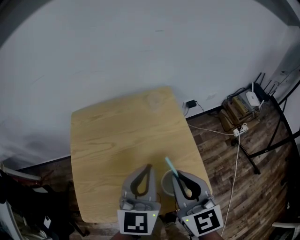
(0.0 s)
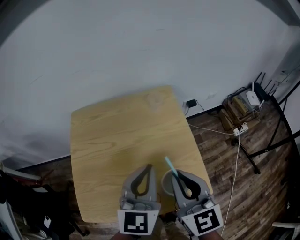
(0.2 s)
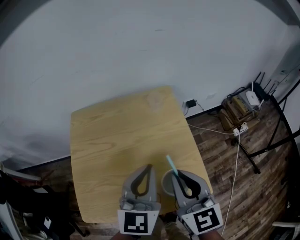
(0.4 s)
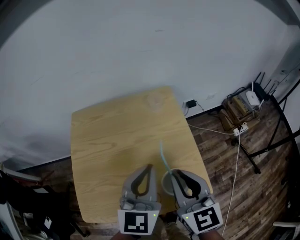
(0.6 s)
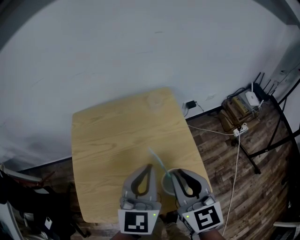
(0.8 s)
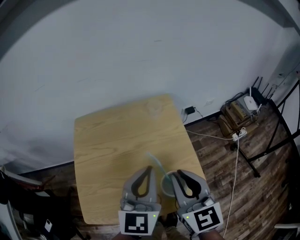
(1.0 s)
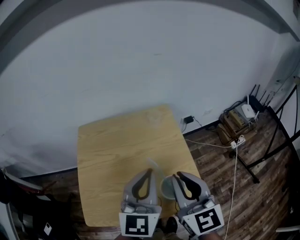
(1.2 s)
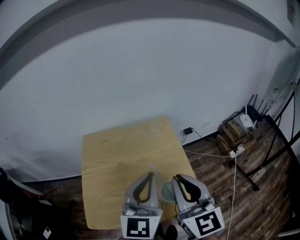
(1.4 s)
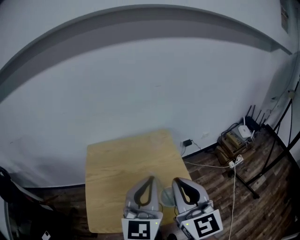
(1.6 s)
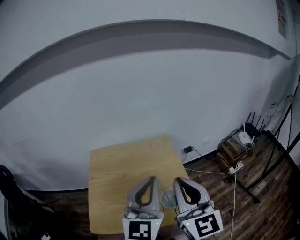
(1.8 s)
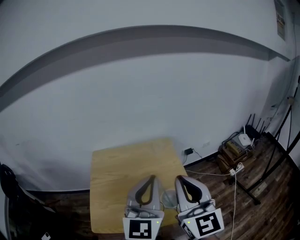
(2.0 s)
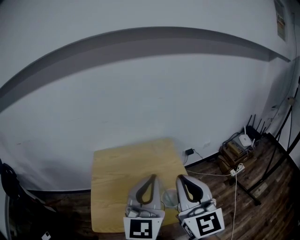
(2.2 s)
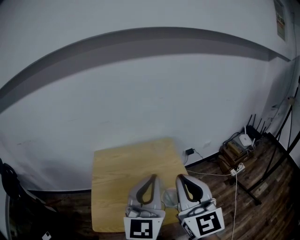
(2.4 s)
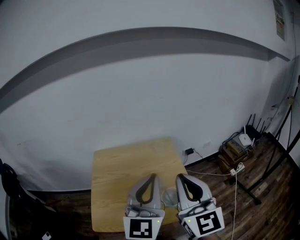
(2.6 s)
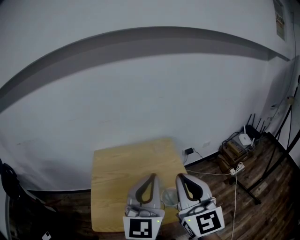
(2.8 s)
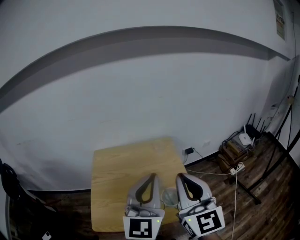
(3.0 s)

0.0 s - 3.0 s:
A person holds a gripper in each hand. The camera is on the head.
0.0 s - 1.6 s: The two grippers go some 15 cm upward.
1.6 s - 3.0 s: The right gripper changes place by some 5 cm. The left gripper moves upward, roughly 5 cm.

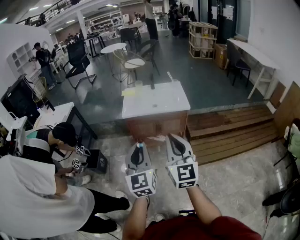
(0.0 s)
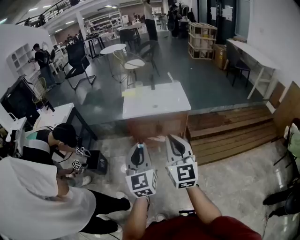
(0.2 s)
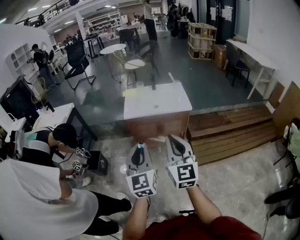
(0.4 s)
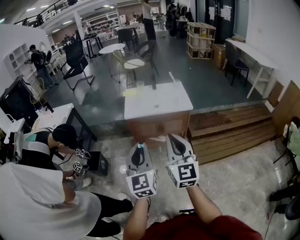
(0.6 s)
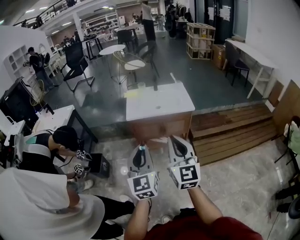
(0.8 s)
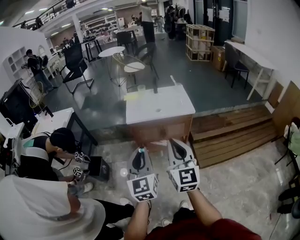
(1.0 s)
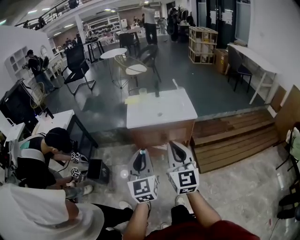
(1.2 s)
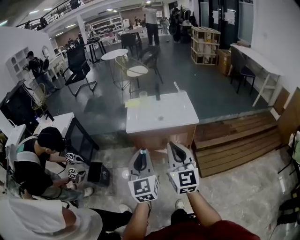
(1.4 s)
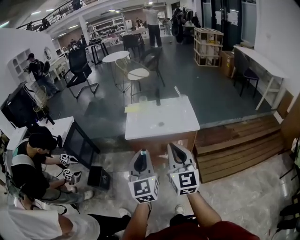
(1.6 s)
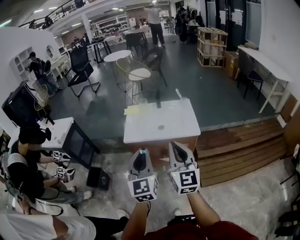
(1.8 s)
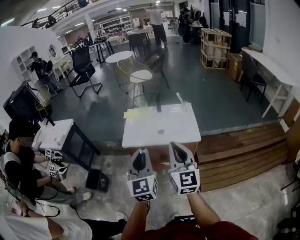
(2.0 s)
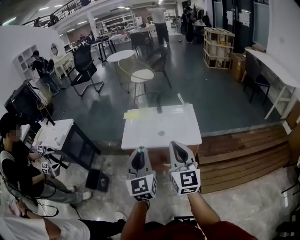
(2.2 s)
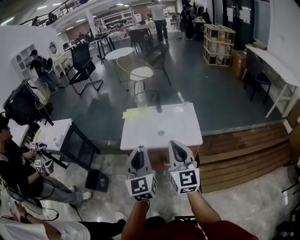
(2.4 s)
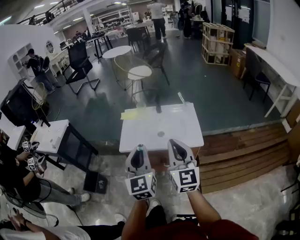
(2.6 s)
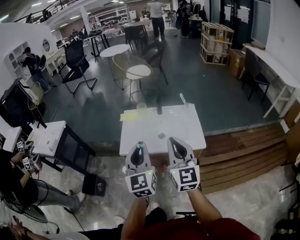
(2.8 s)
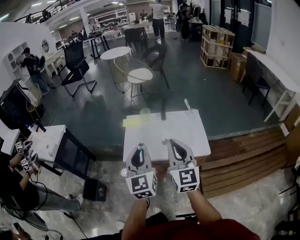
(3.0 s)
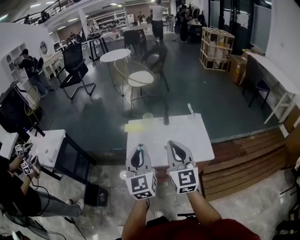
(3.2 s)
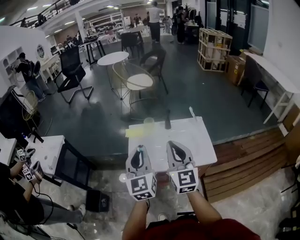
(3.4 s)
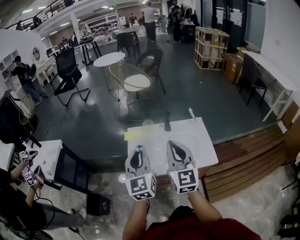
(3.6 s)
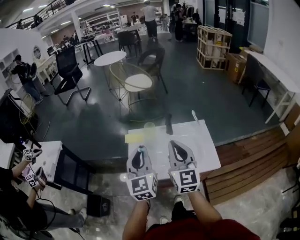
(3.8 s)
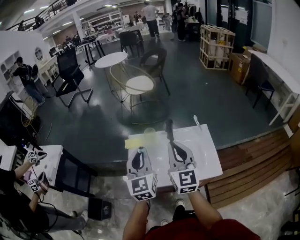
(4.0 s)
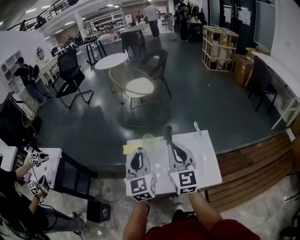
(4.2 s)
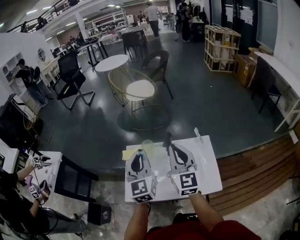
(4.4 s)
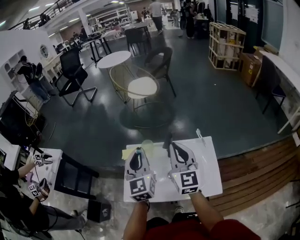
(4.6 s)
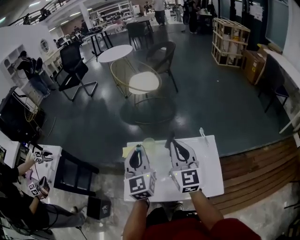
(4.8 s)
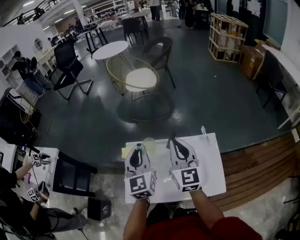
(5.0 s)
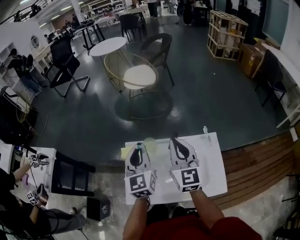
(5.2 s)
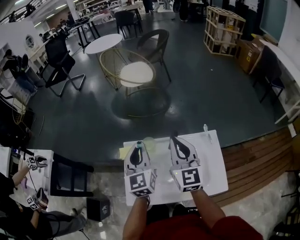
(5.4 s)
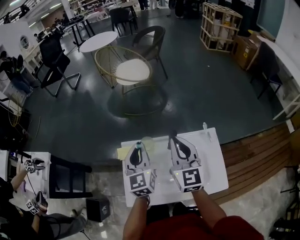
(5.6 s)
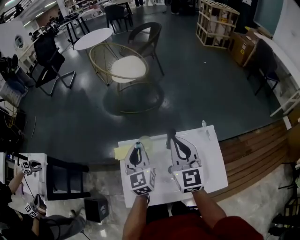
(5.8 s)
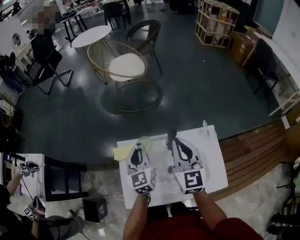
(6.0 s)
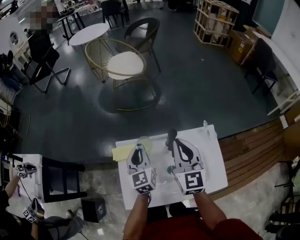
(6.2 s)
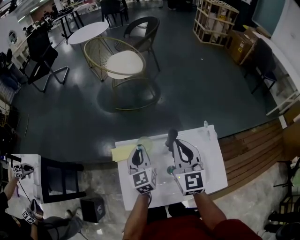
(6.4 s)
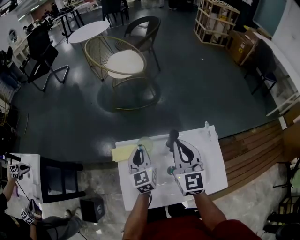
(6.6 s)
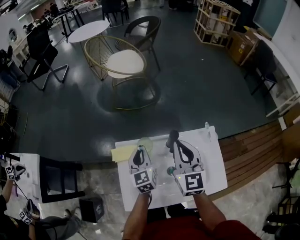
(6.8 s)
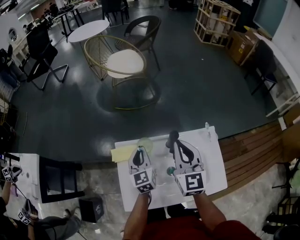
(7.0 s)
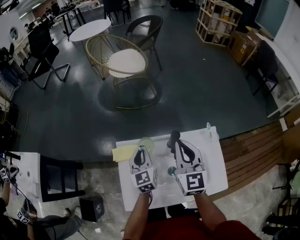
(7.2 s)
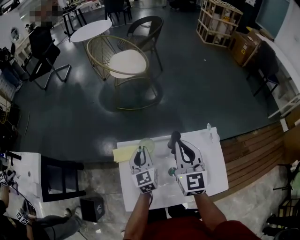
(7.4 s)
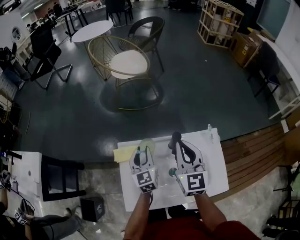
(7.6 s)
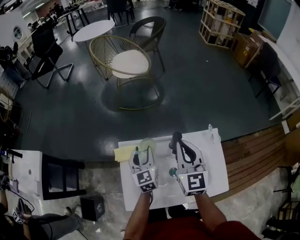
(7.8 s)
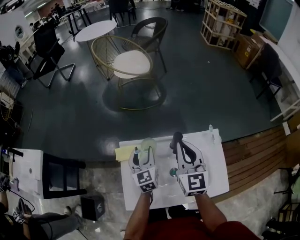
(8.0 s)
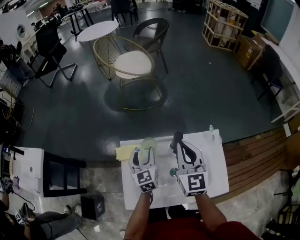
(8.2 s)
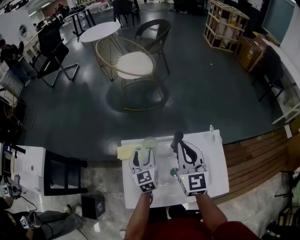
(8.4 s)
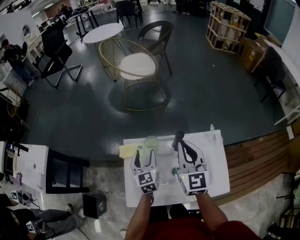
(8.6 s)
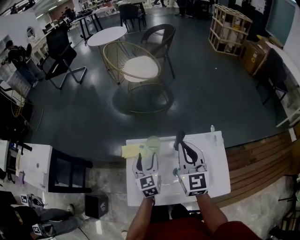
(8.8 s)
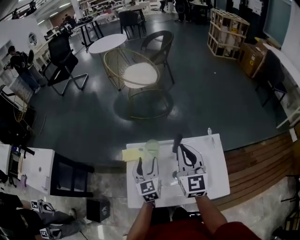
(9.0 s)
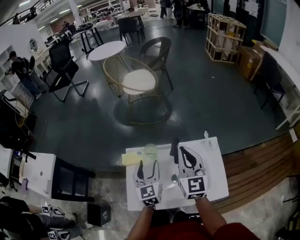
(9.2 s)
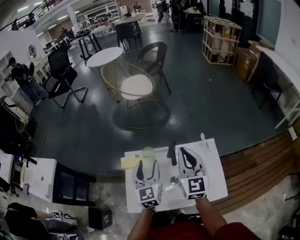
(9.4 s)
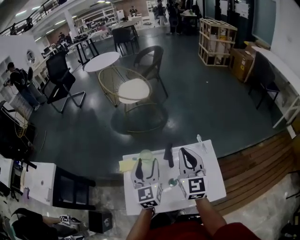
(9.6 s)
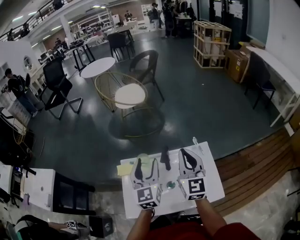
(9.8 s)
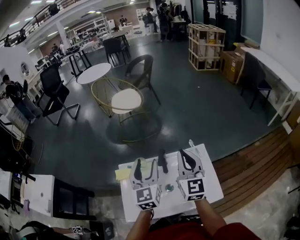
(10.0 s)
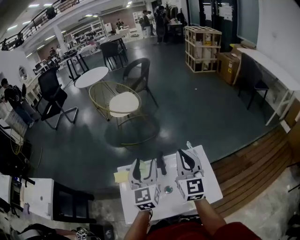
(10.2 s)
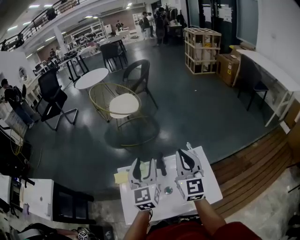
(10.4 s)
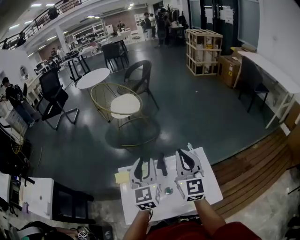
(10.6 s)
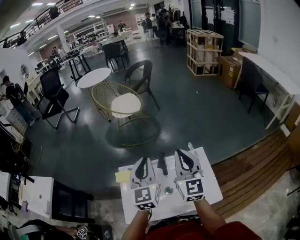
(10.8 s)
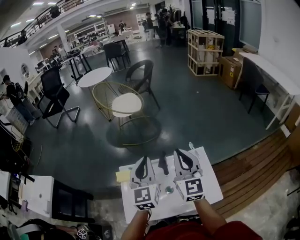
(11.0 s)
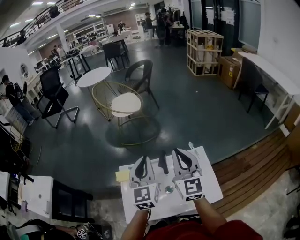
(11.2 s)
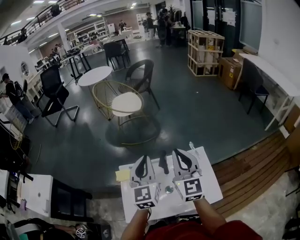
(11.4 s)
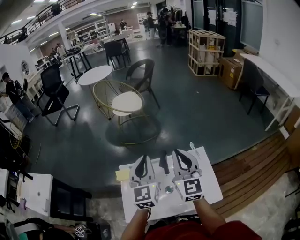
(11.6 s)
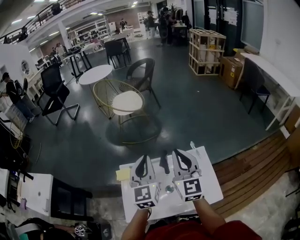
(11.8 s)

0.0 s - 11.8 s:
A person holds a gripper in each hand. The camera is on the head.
0.0 s - 1.4 s: Both grippers travel together forward, approximately 10 cm.
1.4 s - 3.0 s: Both grippers travel together forward, about 30 cm.
3.0 s - 4.4 s: The two grippers go approximately 25 cm forward.
4.4 s - 6.0 s: The right gripper travels forward and downward by some 15 cm. The left gripper shifts about 20 cm forward and downward.
6.0 s - 7.4 s: The left gripper heads downward, covering some 5 cm.
7.4 s - 8.8 s: The left gripper shifts by about 5 cm, and opens its fingers.
8.8 s - 10.4 s: The right gripper travels to the right and upward by about 10 cm. Meanwhile the left gripper shifts about 20 cm upward and to the right, and changes its angle by some 20 degrees.
10.4 s - 11.8 s: The left gripper closes up.

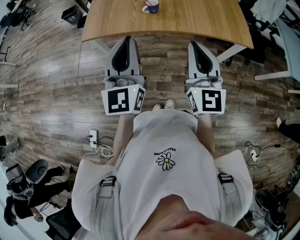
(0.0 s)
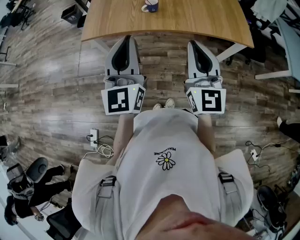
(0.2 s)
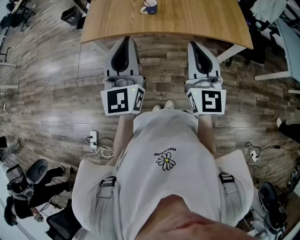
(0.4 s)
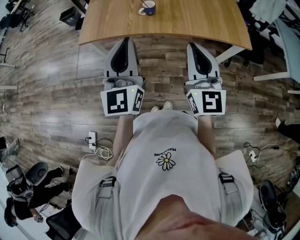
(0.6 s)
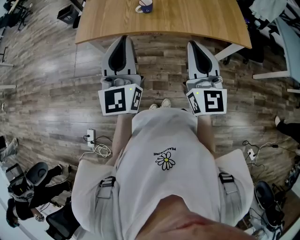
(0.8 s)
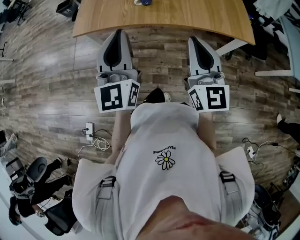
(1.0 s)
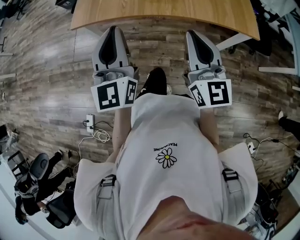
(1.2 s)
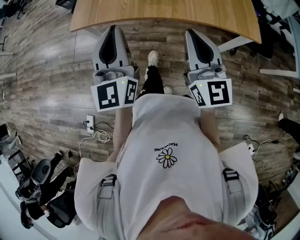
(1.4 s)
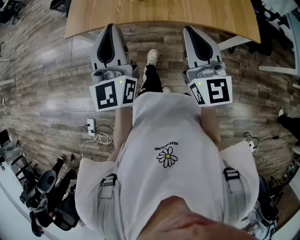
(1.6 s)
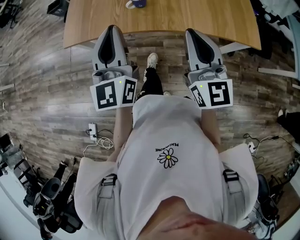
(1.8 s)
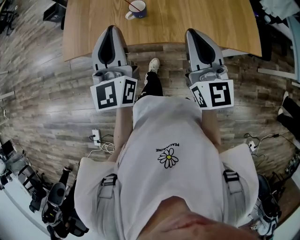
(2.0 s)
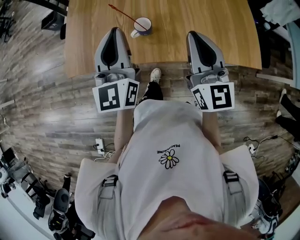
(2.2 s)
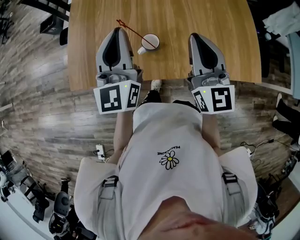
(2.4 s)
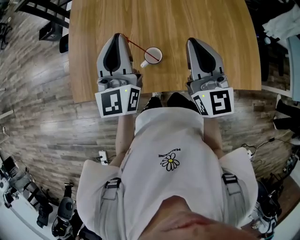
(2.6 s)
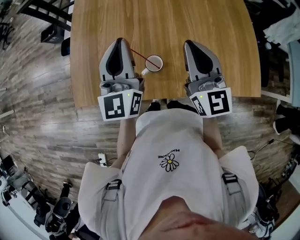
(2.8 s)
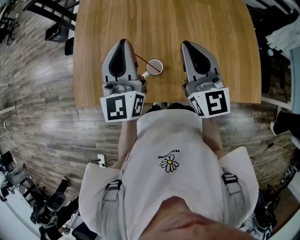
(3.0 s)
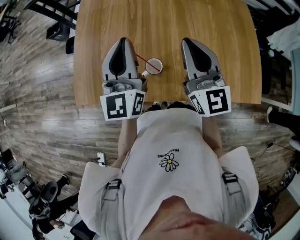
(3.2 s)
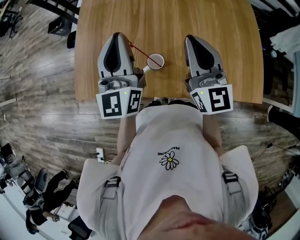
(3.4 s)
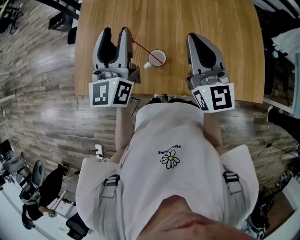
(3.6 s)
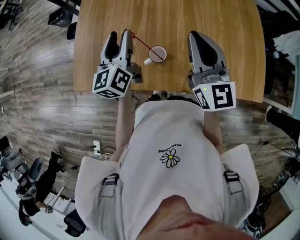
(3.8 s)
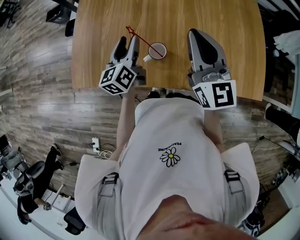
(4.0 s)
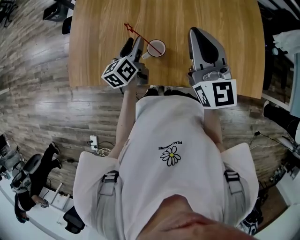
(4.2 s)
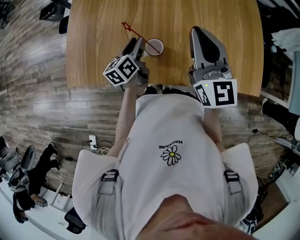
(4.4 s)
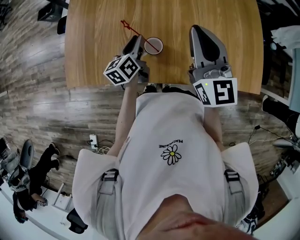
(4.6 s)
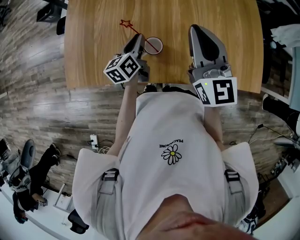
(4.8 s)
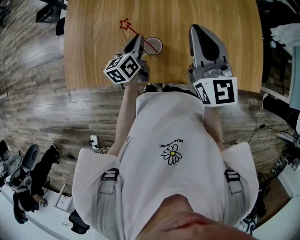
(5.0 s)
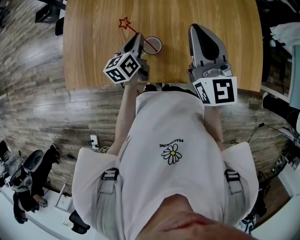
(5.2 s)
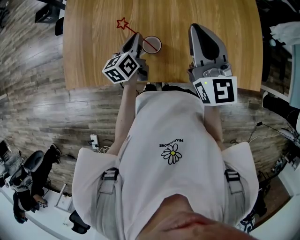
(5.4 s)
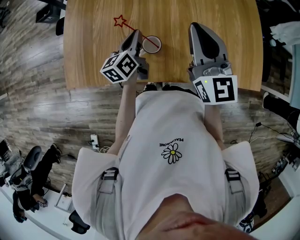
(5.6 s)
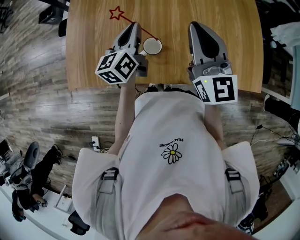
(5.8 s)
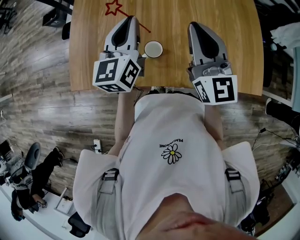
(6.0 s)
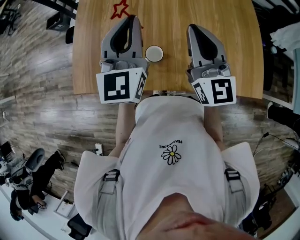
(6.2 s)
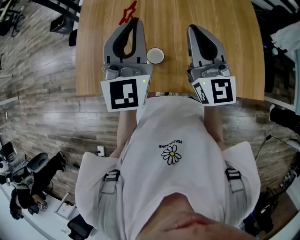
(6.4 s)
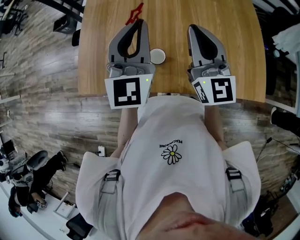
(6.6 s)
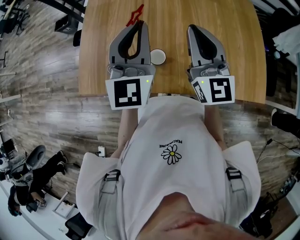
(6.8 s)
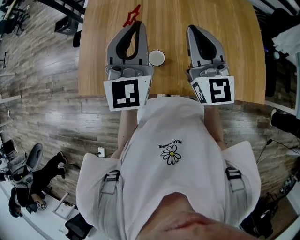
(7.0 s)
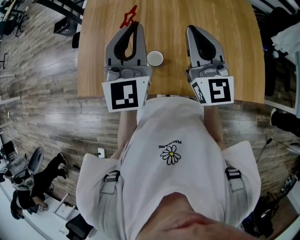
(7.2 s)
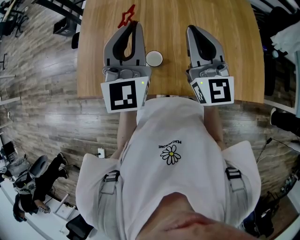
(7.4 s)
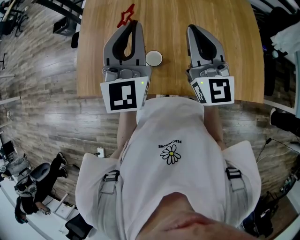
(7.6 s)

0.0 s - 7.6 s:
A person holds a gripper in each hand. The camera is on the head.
0.0 s - 1.6 s: Both grippers travel together forward, some 10 cm.
1.6 s - 3.0 s: Both grippers move forward, roughly 35 cm.
3.0 s - 4.6 s: The left gripper moves downward, some 25 cm, changes its angle by some 50 degrees, and opens up.
4.6 s - 6.0 s: The left gripper moves upward, roughly 20 cm, and rotates about 30 degrees.
6.0 s - 7.6 s: The left gripper travels upward by roughly 10 cm, and rotates approximately 30 degrees.

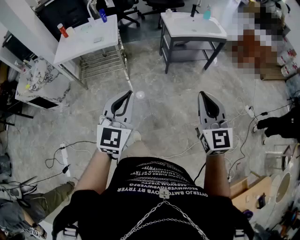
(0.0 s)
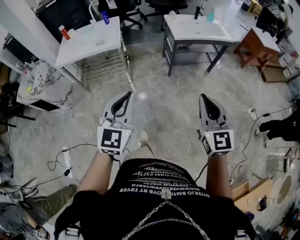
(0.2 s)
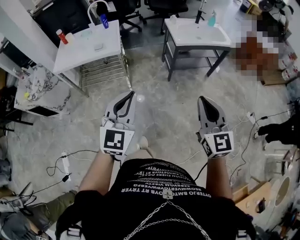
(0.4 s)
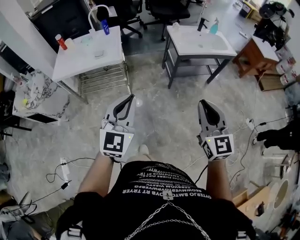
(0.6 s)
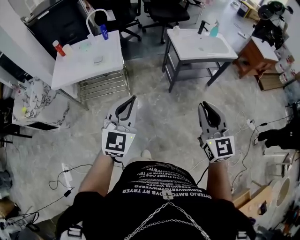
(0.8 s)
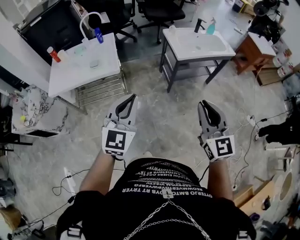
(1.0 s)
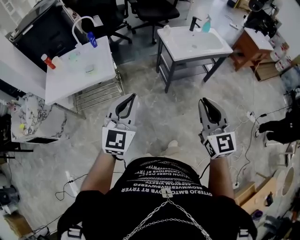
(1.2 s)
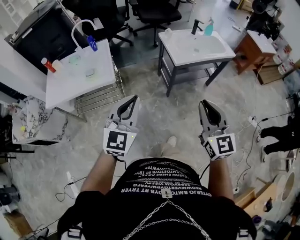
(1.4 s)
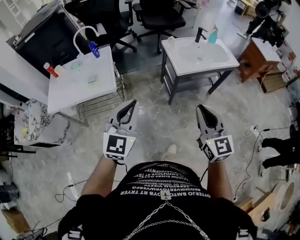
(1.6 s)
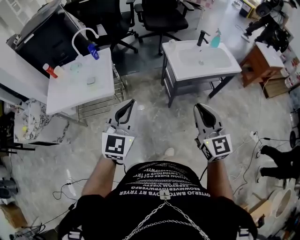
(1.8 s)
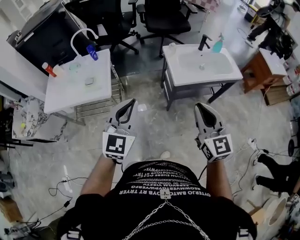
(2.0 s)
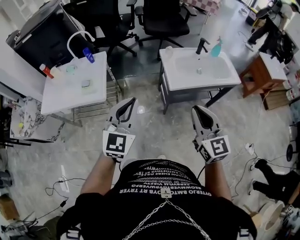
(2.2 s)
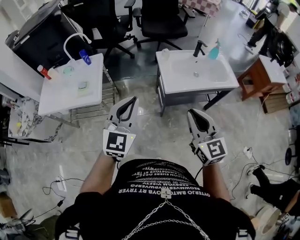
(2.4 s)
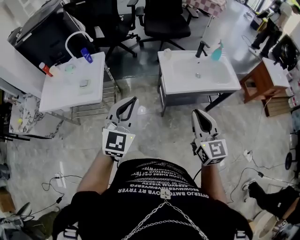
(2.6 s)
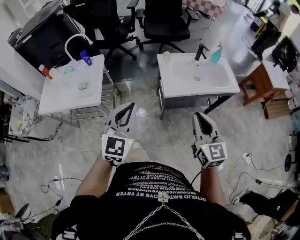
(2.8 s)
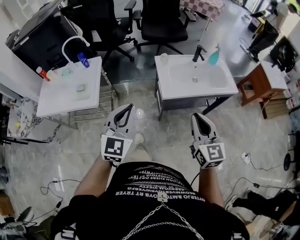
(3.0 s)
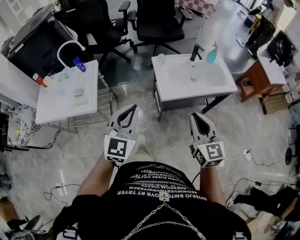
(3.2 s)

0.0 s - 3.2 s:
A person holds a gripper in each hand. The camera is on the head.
0.0 s - 1.6 s: Both grippers travel together forward, some 35 cm.
1.6 s - 3.2 s: Both grippers move forward and to the right, some 25 cm.
